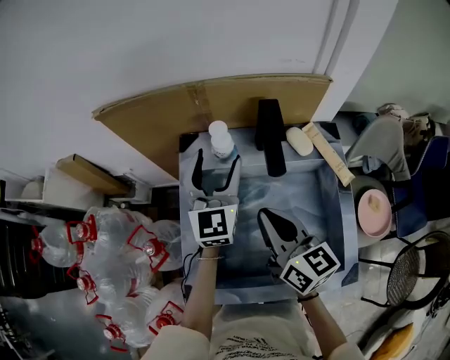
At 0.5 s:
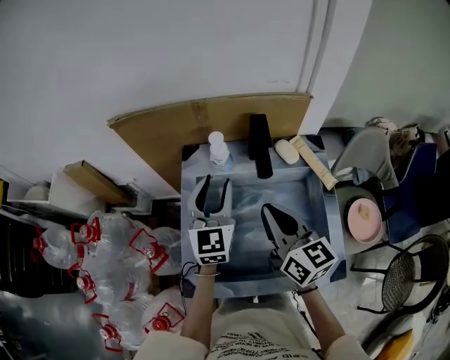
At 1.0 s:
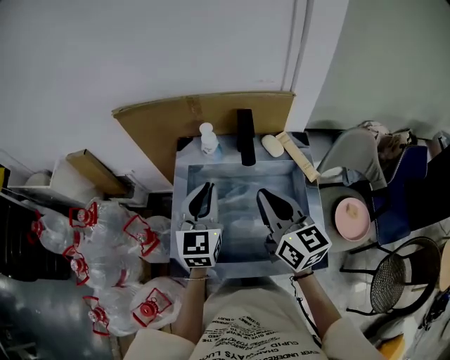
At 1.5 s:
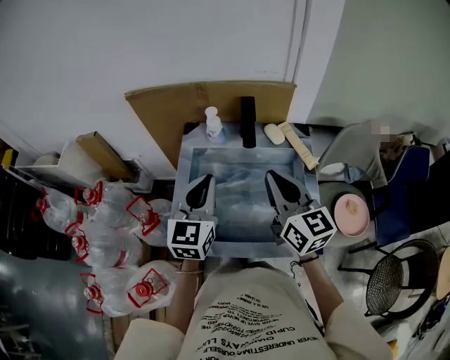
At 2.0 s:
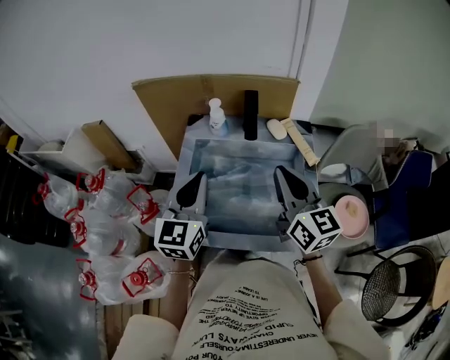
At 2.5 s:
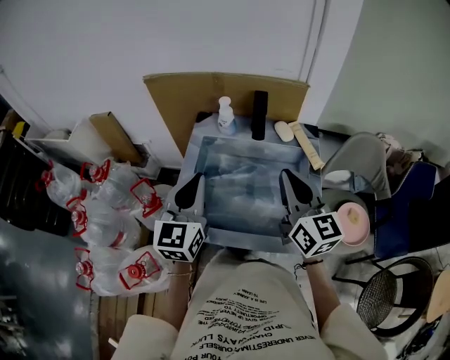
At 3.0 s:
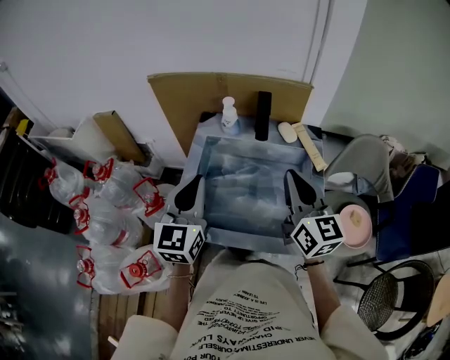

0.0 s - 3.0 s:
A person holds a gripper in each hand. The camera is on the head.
0.0 s - 1.5 s: The left gripper shifts some 20 cm backward, and closes its fingers. Meanwhile the right gripper heads upward, to the right and backward, covering approximately 15 cm.
1.5 s - 3.0 s: The left gripper changes place by roughly 5 cm.

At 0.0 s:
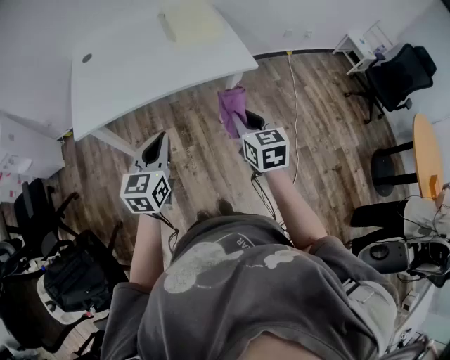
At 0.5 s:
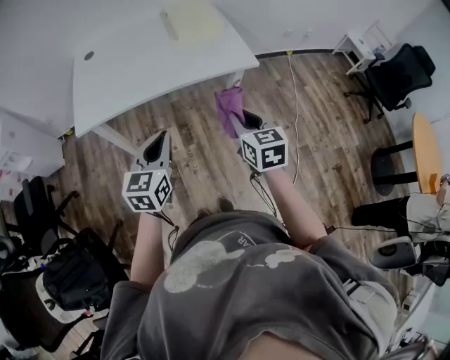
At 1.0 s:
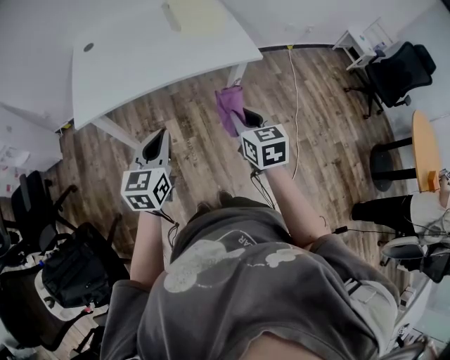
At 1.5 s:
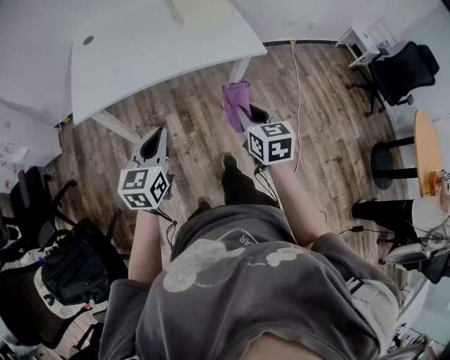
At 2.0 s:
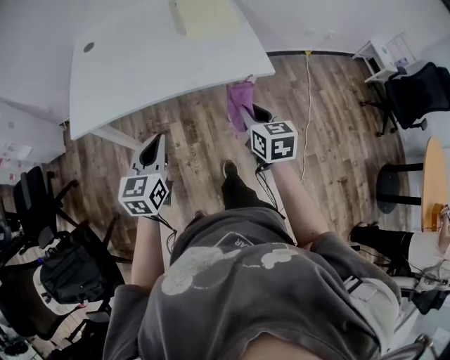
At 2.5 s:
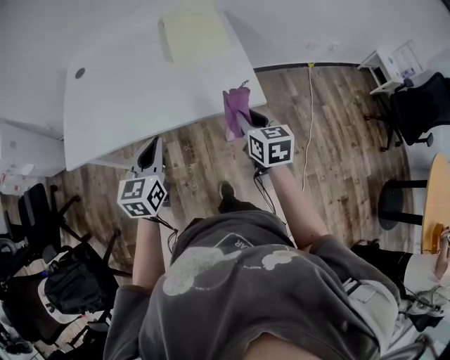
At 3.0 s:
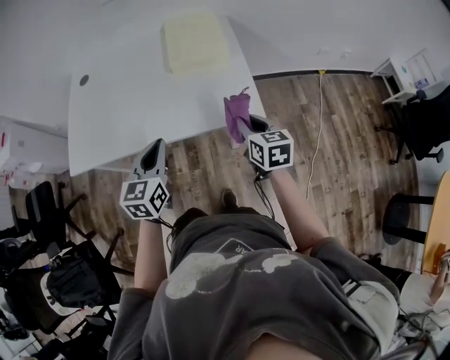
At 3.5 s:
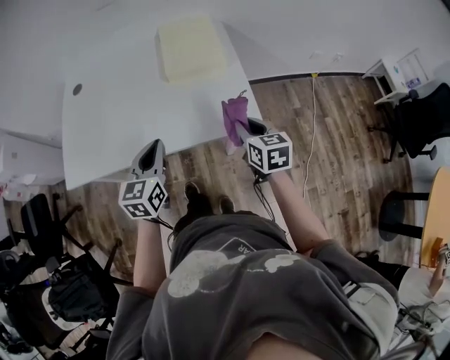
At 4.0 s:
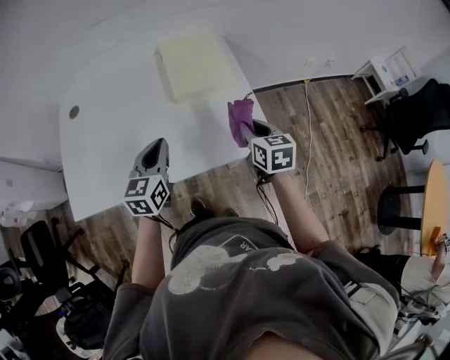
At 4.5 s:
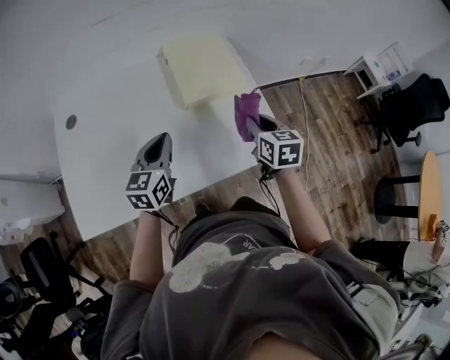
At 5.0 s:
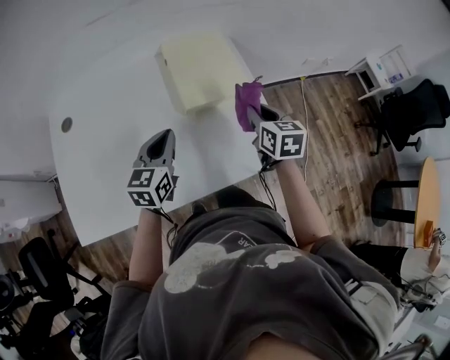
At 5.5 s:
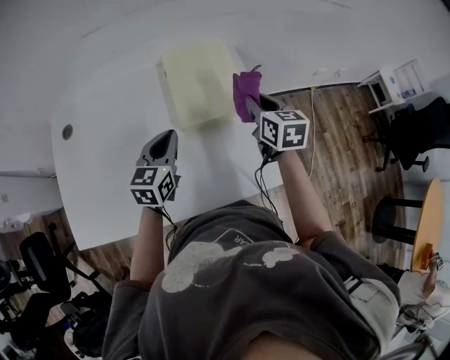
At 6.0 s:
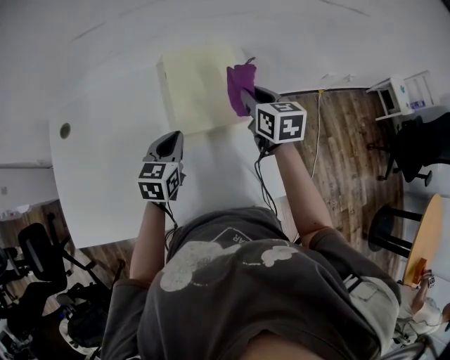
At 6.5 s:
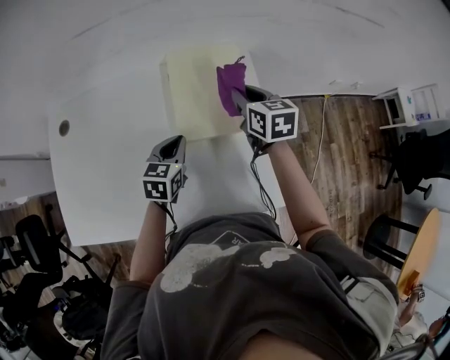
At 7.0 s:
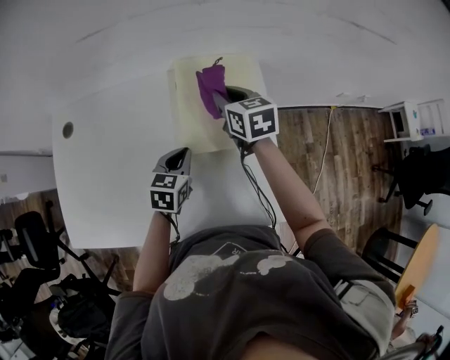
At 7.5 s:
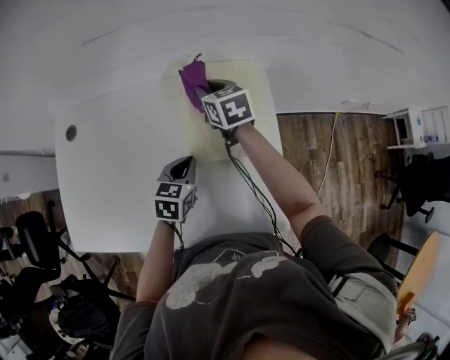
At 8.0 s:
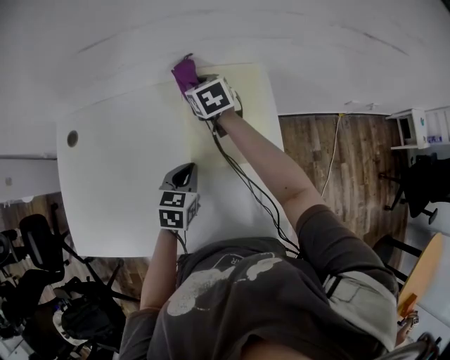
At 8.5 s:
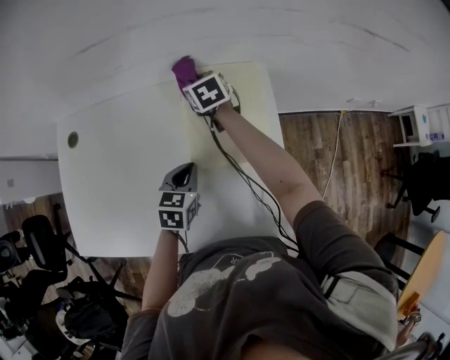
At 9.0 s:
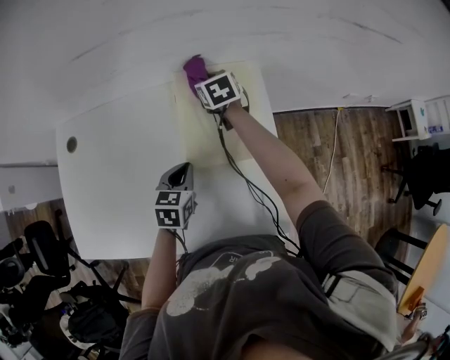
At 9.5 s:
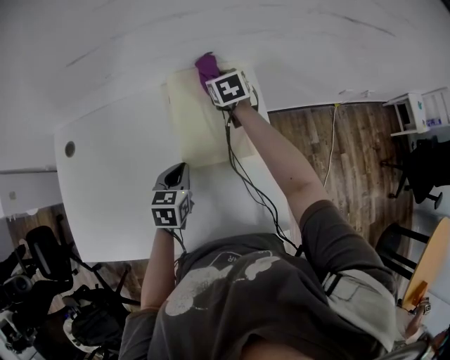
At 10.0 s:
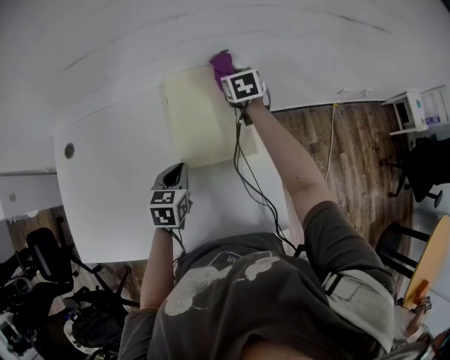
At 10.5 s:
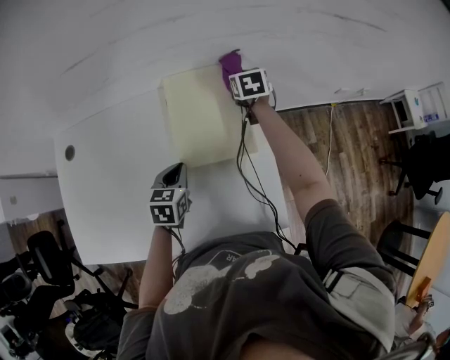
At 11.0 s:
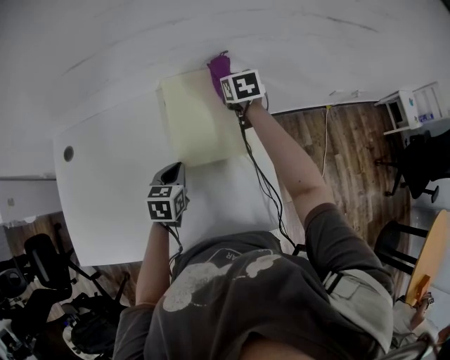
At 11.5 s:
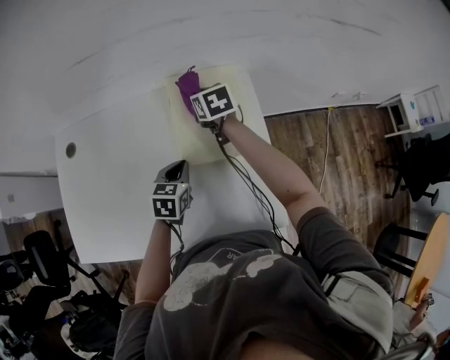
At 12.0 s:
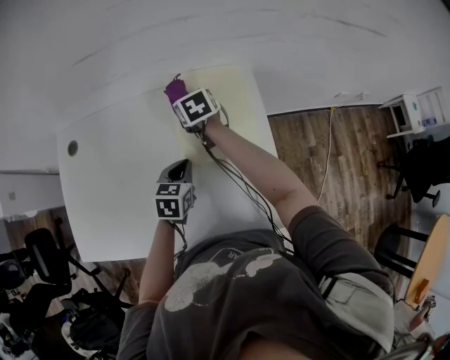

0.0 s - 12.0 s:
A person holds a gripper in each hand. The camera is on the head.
0.0 s - 2.0 s: The left gripper moves forward, approximately 5 cm. The right gripper travels forward and downward by some 10 cm.
2.0 s - 4.0 s: Both grippers travel together forward, about 30 cm.
4.0 s - 6.0 s: The two grippers go approximately 25 cm forward.
6.0 s - 8.0 s: The right gripper travels to the left and forward by some 25 cm, and turns by some 20 degrees. The left gripper moves downward, approximately 5 cm.
8.0 s - 10.0 s: The right gripper moves to the right, some 15 cm.
10.0 s - 12.0 s: The right gripper heads to the left and backward, covering approximately 20 cm.

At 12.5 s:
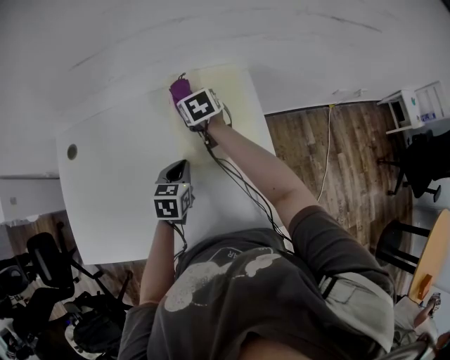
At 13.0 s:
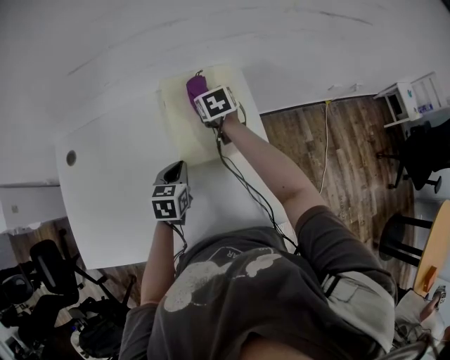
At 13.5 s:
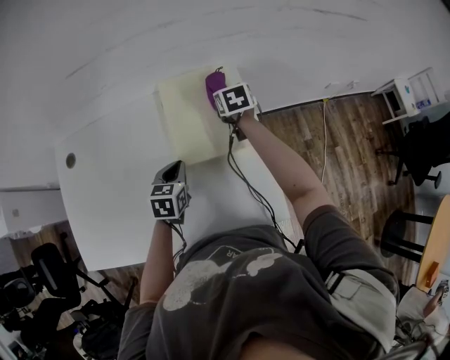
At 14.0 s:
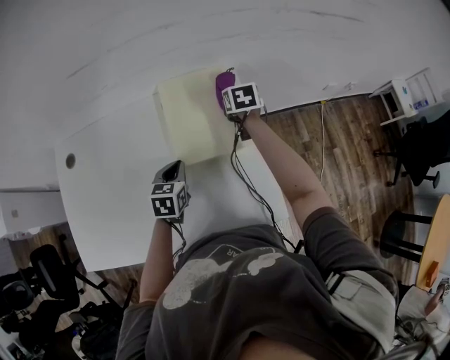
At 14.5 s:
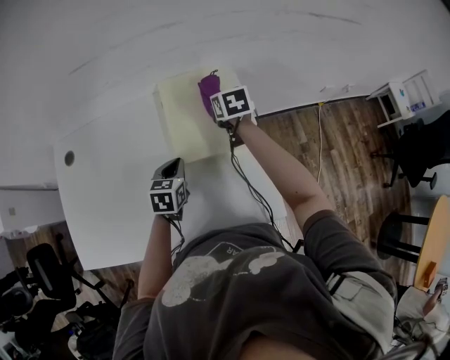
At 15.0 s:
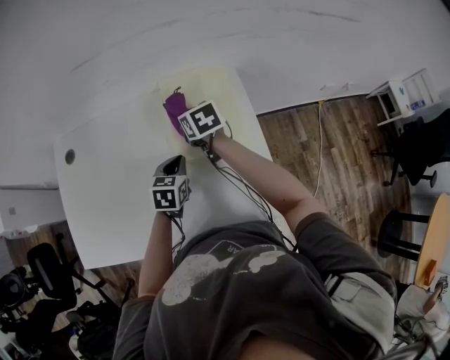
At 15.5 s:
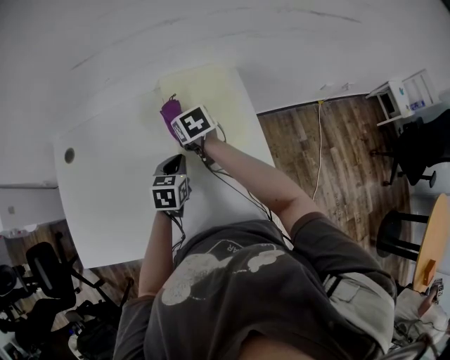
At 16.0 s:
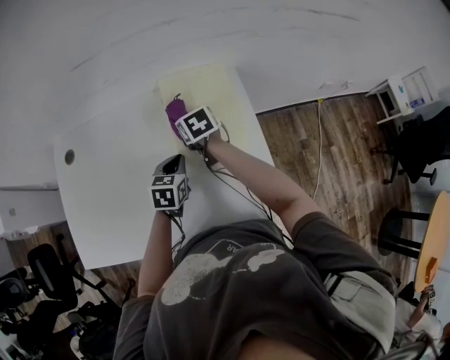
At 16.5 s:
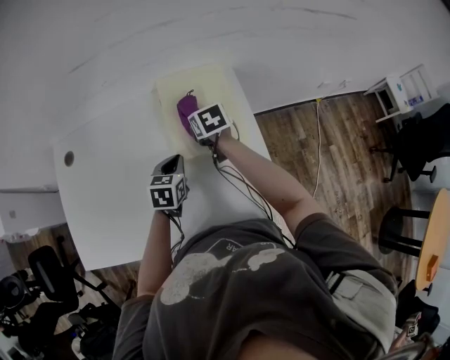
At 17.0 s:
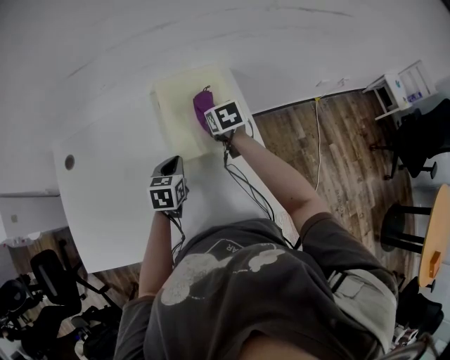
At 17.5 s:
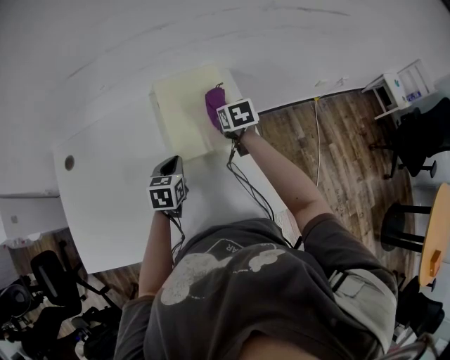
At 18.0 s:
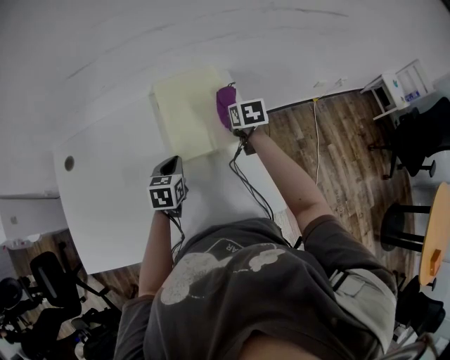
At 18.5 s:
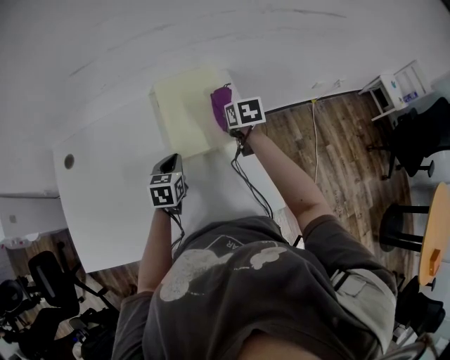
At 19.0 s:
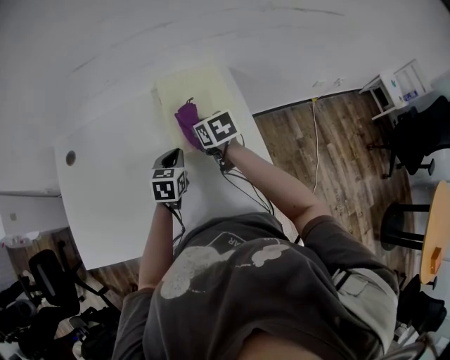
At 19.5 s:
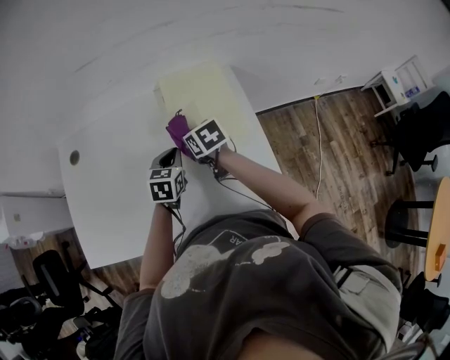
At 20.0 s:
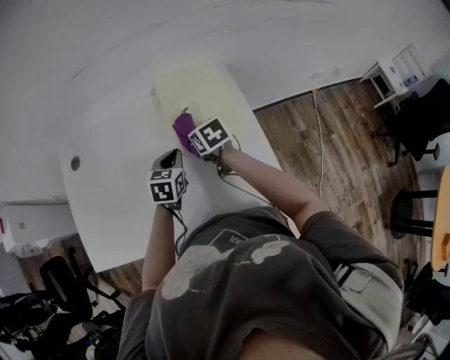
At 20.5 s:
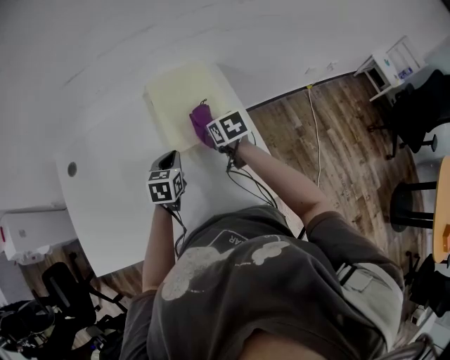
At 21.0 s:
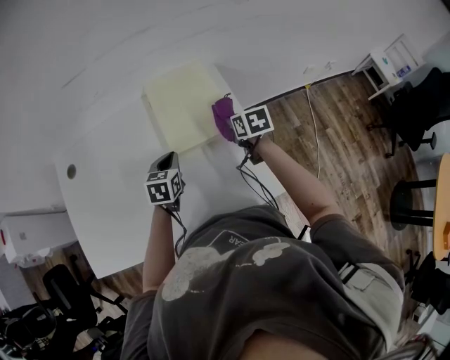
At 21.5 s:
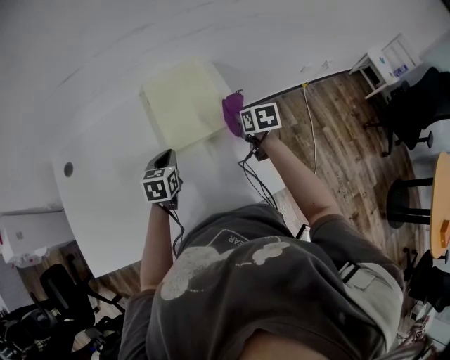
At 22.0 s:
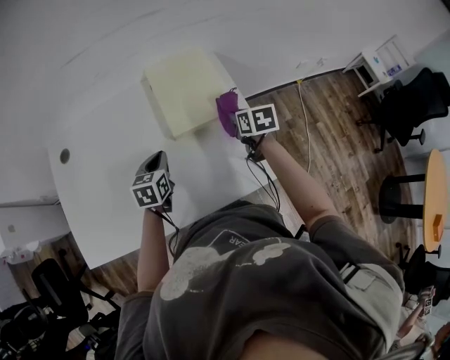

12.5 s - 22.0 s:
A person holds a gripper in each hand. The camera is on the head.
12.5 s - 14.5 s: The right gripper is displaced to the right by some 15 cm.
14.5 s - 16.5 s: The right gripper goes about 10 cm to the left.
16.5 s - 18.0 s: The right gripper shifts roughly 15 cm to the right.
18.0 s - 20.0 s: The right gripper is displaced to the left and backward by some 20 cm.
20.0 s - 22.0 s: The right gripper shifts about 15 cm to the right, and turns by about 20 degrees. Meanwhile the left gripper moves backward, roughly 5 cm.

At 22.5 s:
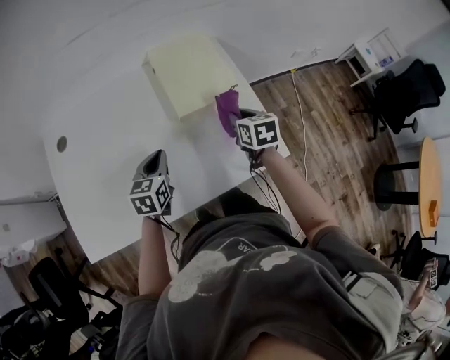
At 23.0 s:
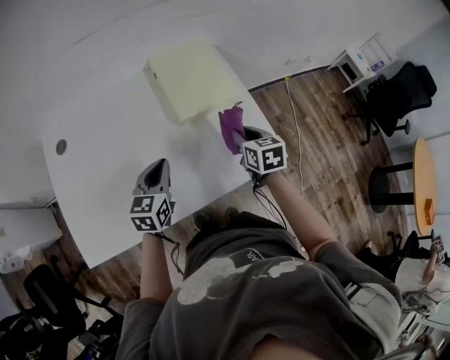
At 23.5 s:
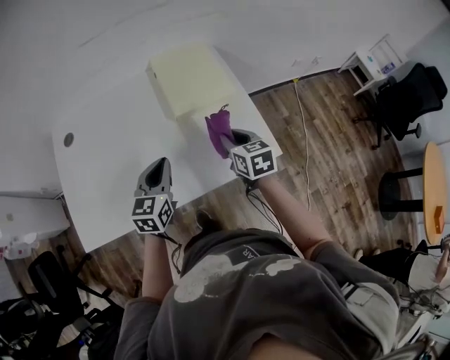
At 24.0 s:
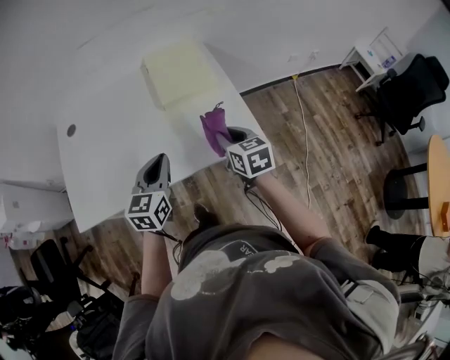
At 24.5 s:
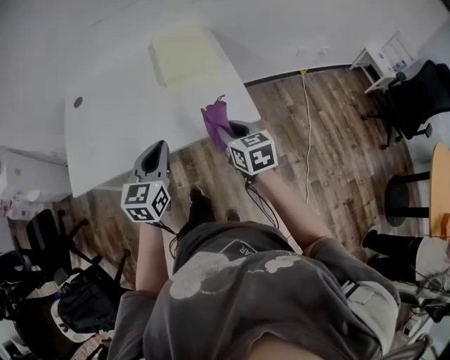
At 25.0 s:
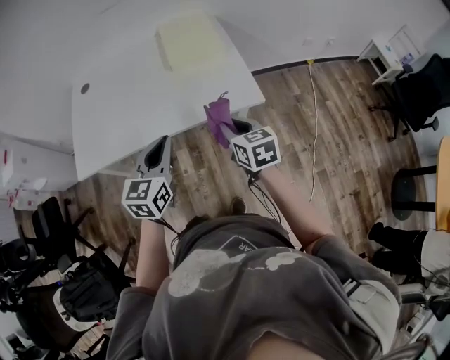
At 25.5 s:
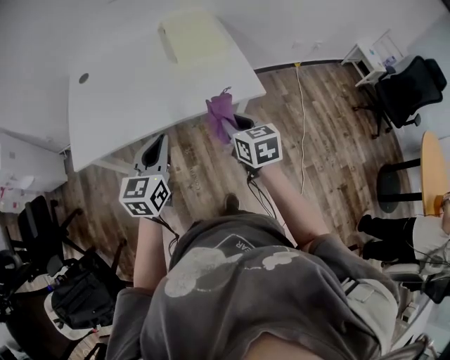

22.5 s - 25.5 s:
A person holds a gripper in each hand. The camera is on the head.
22.5 s - 24.0 s: The right gripper goes approximately 15 cm backward. Meanwhile the left gripper is displaced backward, upward and to the right by roughly 20 cm.
24.0 s - 25.5 s: Both grippers move backward, some 20 cm.
